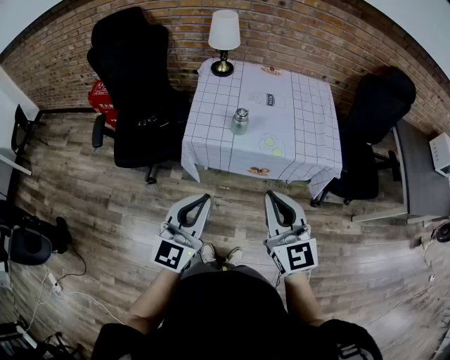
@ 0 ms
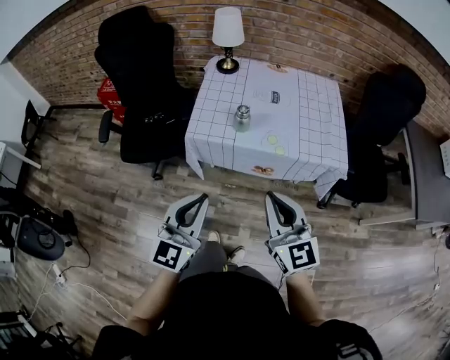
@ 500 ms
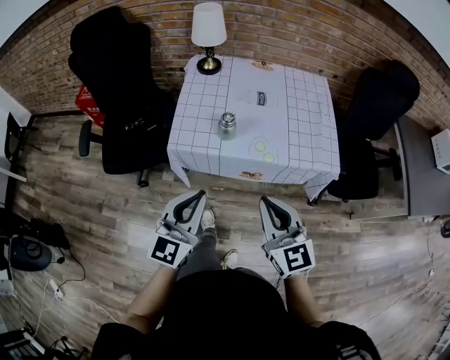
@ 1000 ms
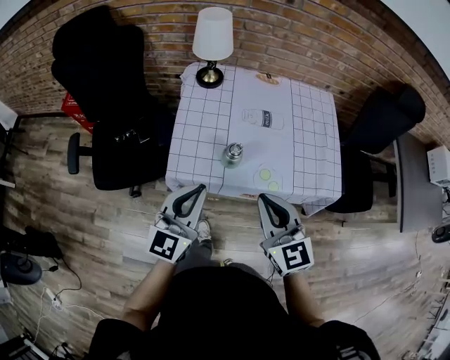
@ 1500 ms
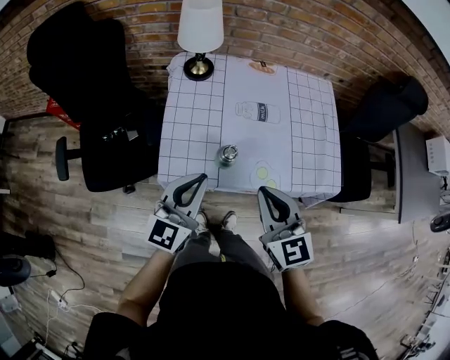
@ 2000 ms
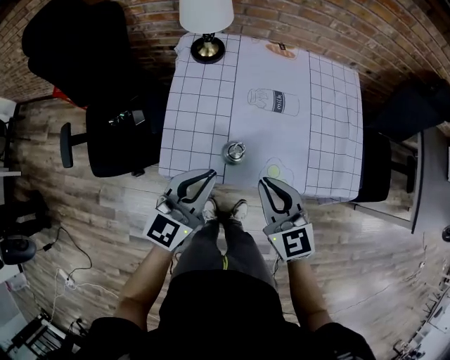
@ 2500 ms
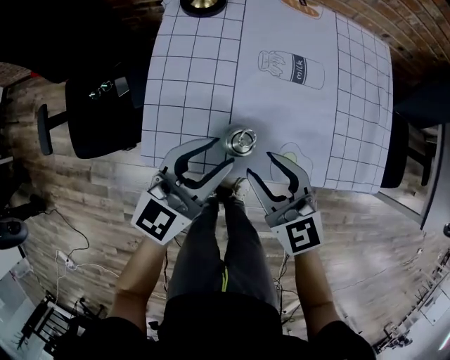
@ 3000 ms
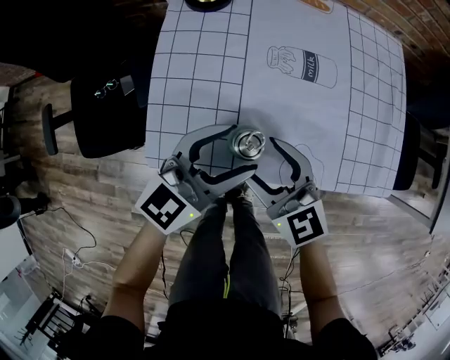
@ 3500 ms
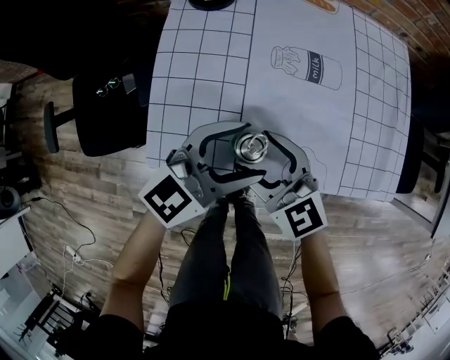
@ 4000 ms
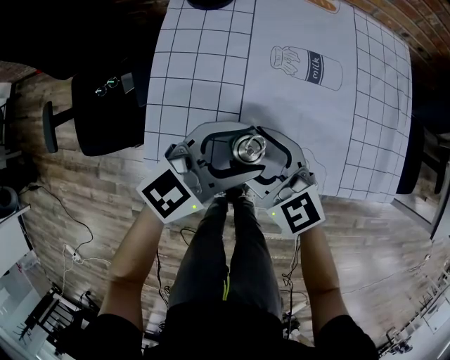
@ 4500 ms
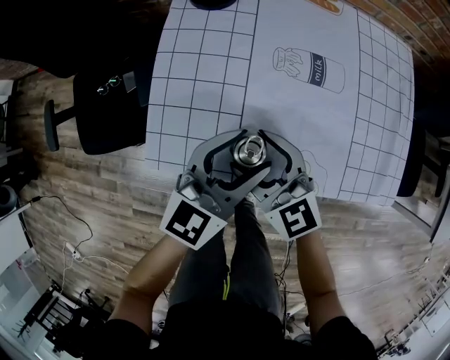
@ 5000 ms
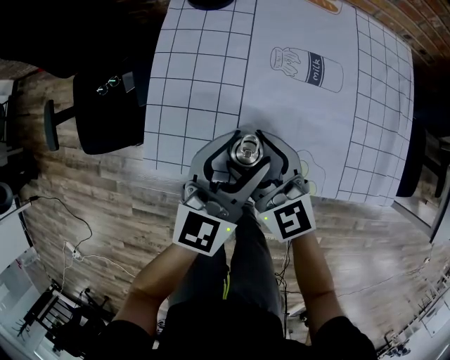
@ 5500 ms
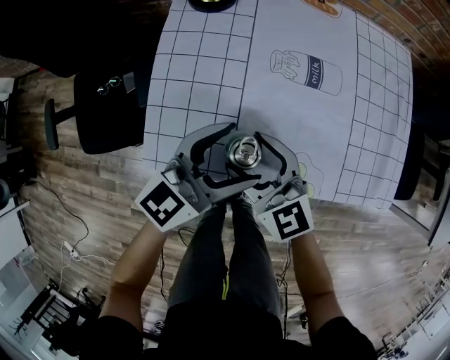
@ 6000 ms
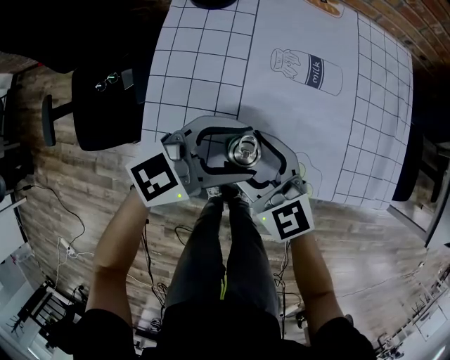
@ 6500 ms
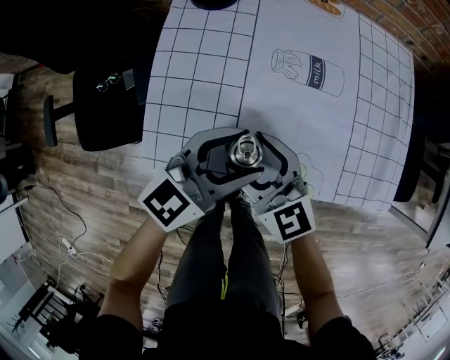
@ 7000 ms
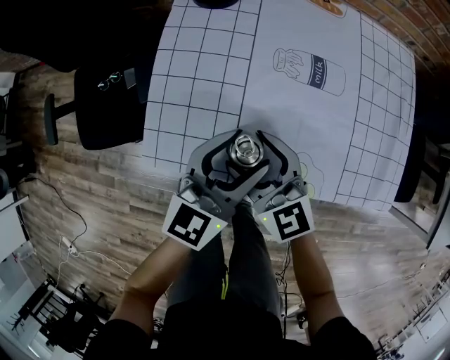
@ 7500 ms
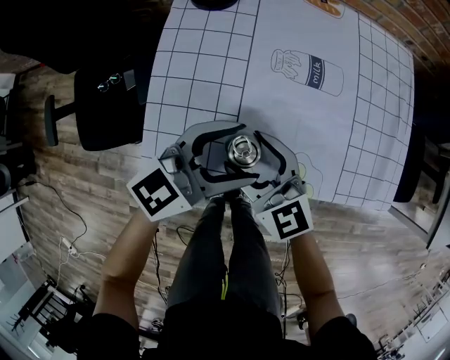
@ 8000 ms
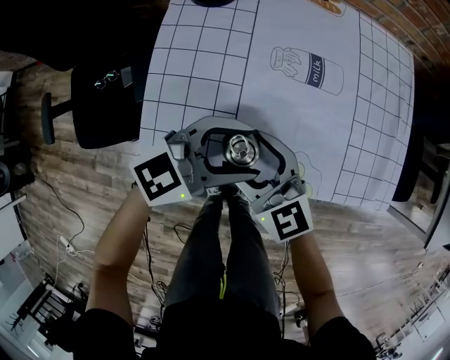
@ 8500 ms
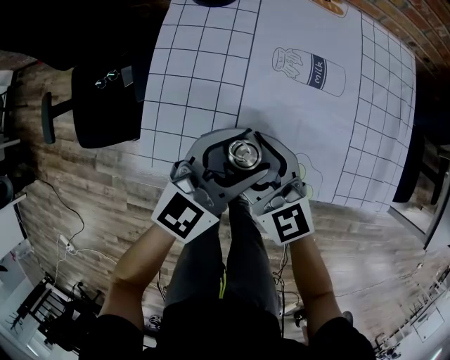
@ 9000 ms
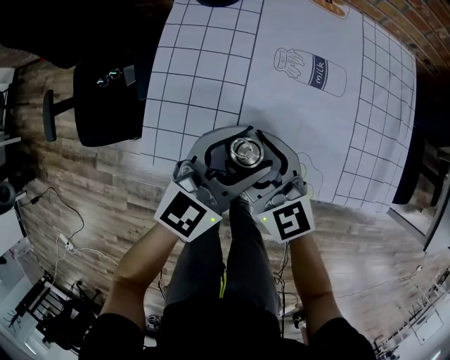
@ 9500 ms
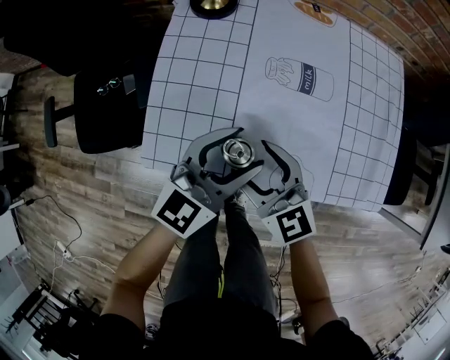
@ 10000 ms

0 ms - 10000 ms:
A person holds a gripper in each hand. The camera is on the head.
0 ms - 2000 ms: The grippers both shift forward by approximately 30 cm.
2000 ms - 4000 ms: The left gripper moves downward, to the right and forward, approximately 15 cm, rotates approximately 30 degrees, and opens. Meanwhile the right gripper goes about 20 cm downward and forward, rotates roughly 20 degrees, and opens up.

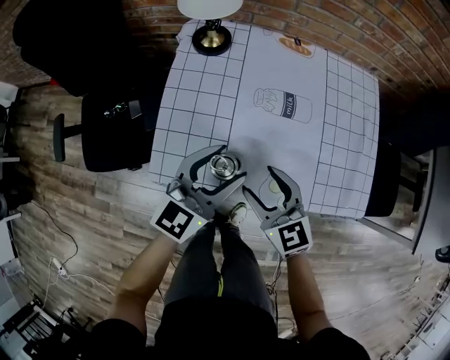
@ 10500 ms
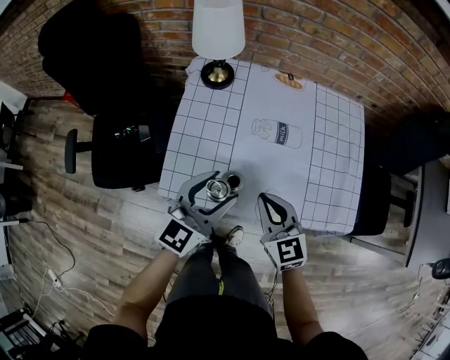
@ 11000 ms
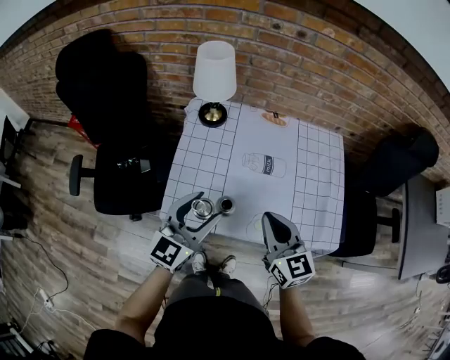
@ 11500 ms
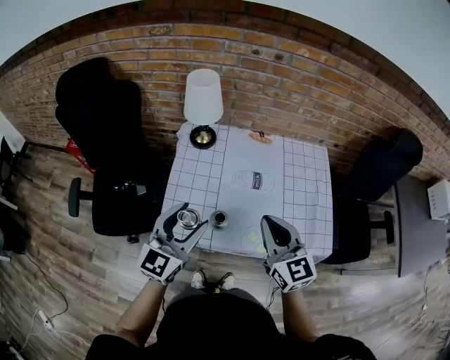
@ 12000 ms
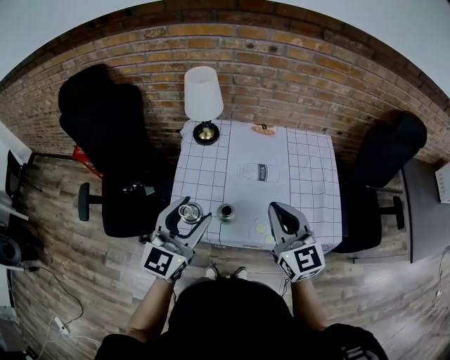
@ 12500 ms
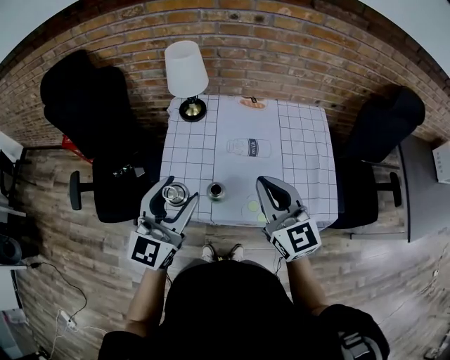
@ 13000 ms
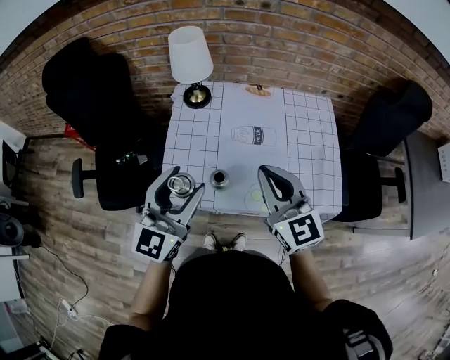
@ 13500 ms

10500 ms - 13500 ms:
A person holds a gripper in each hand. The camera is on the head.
10500 ms - 12000 ms: The right gripper goes about 20 cm upward, swivels approximately 20 degrees, and closes its fingers. Meanwhile the left gripper travels upward and to the left by roughly 15 cm.
12000 ms - 13500 ms: There are only small adjustments of the grippers.

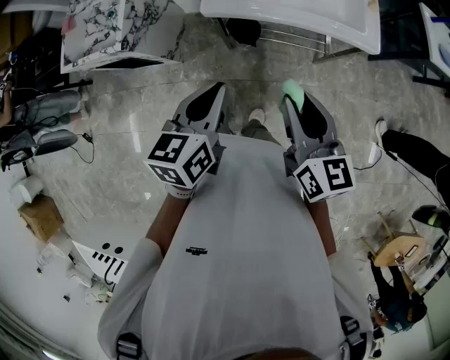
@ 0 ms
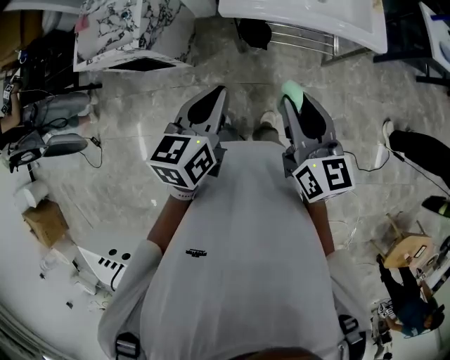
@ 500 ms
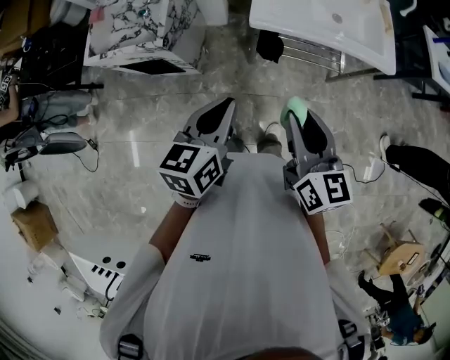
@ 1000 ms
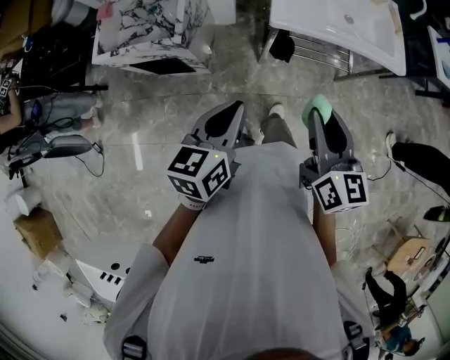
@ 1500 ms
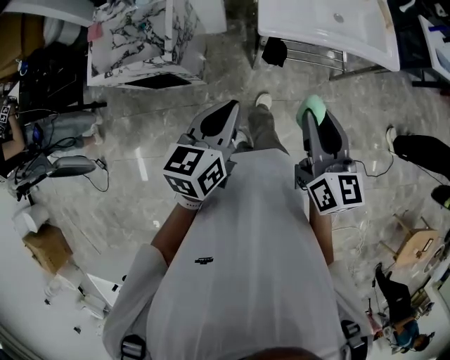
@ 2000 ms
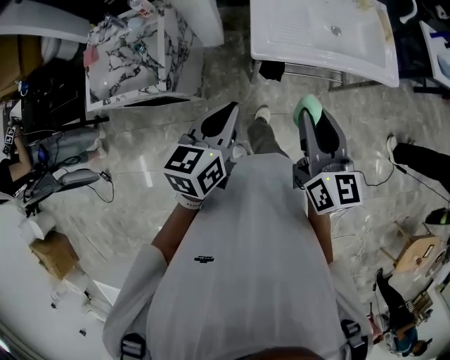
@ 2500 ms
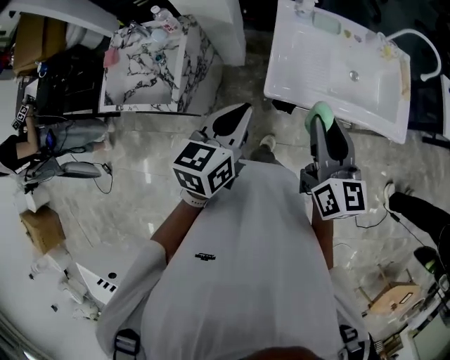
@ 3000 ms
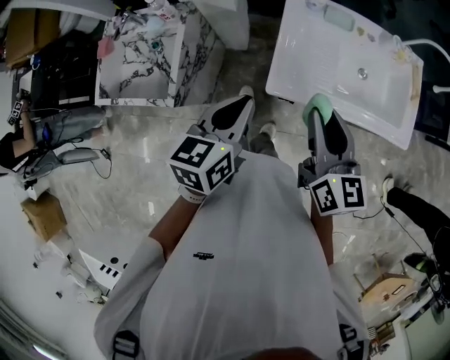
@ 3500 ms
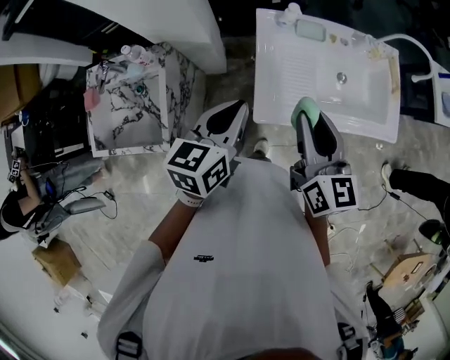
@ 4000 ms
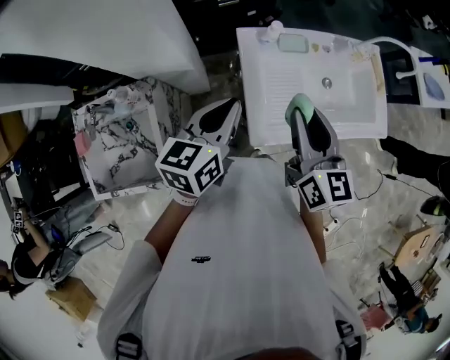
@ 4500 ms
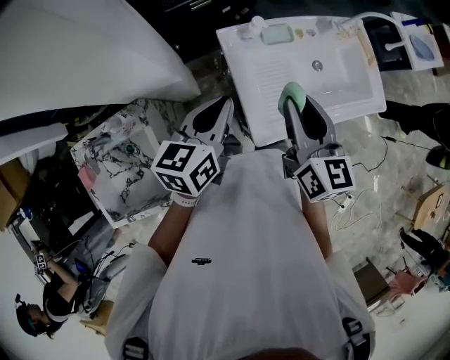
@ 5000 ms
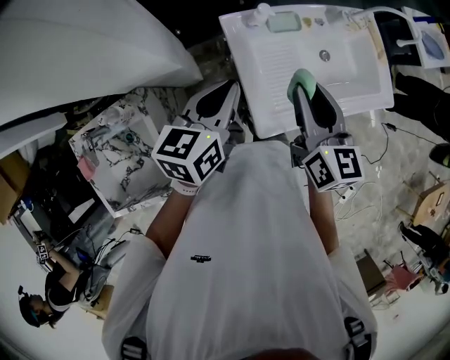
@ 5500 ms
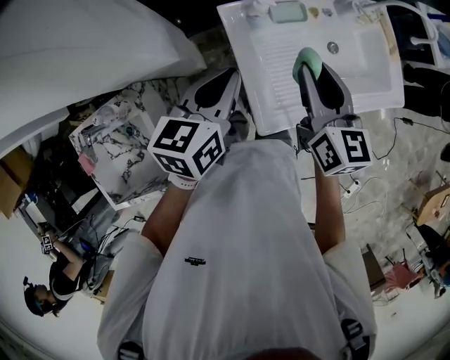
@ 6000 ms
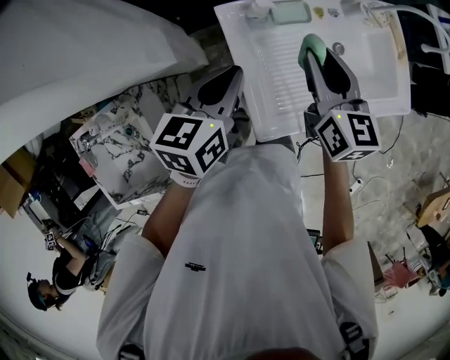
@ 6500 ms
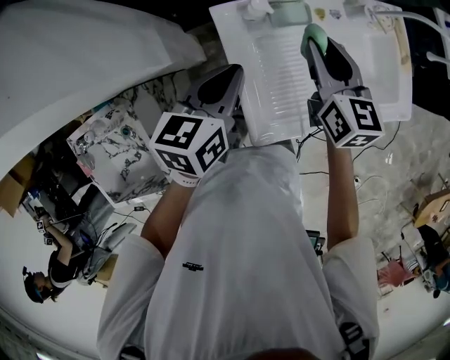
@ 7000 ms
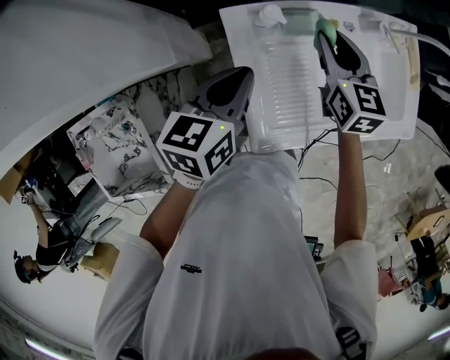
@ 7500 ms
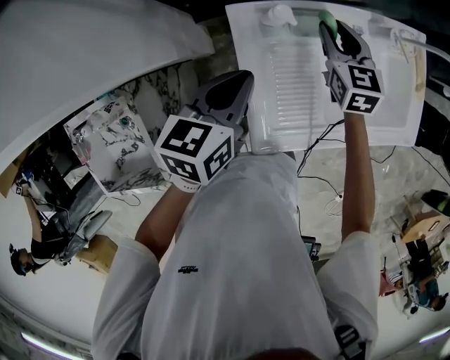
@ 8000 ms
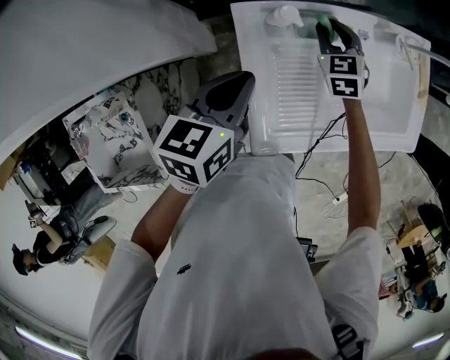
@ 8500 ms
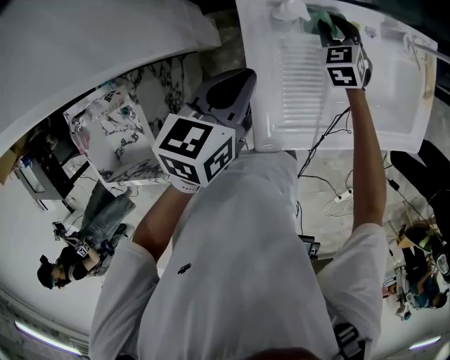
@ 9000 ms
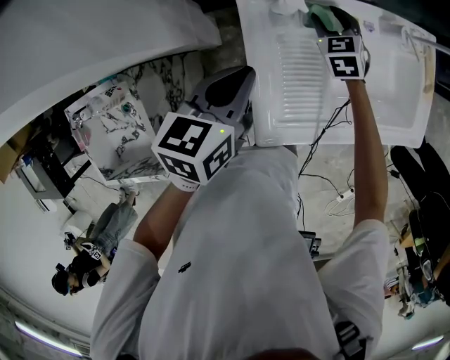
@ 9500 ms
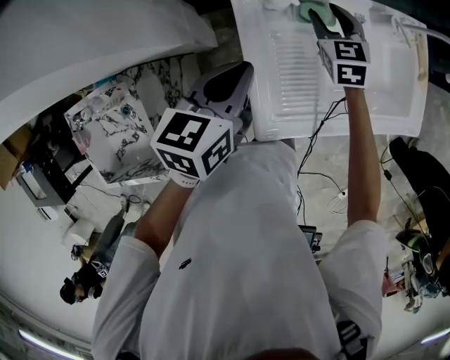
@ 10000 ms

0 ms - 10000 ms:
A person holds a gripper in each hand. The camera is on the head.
0 ms - 2000 ms: Both grippers travel together to the left, approximately 20 cm.
2000 ms - 4000 ms: The grippers both shift forward by about 35 cm.
4000 ms - 6000 ms: The two grippers go approximately 15 cm forward.
6000 ms - 8000 ms: The right gripper shifts about 25 cm forward and downward, and swivels approximately 30 degrees. The left gripper travels downward and forward by about 10 cm.
8000 ms - 10000 ms: The right gripper travels downward and back again, approximately 10 cm each way.

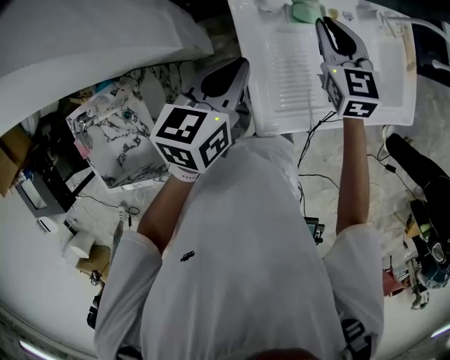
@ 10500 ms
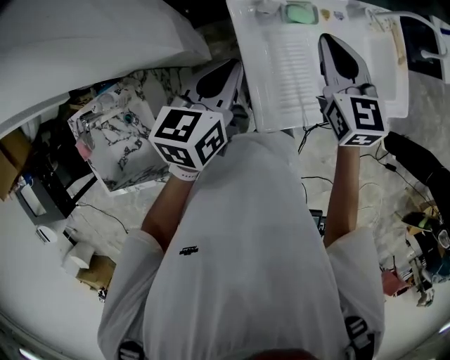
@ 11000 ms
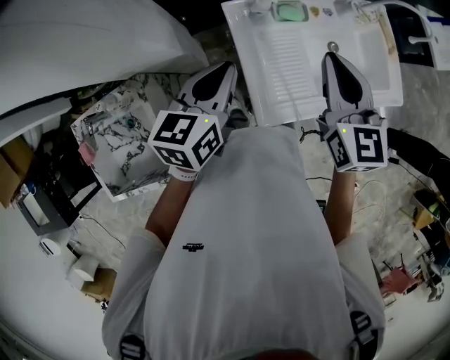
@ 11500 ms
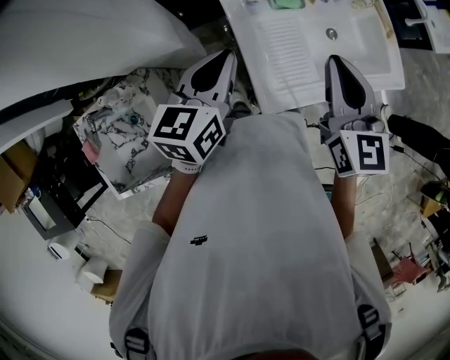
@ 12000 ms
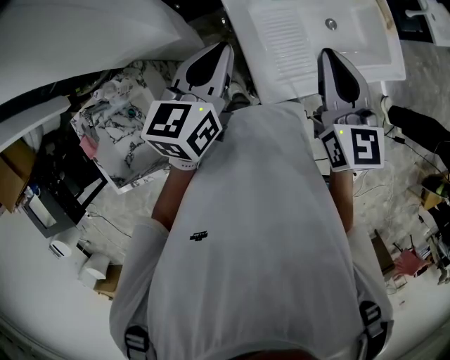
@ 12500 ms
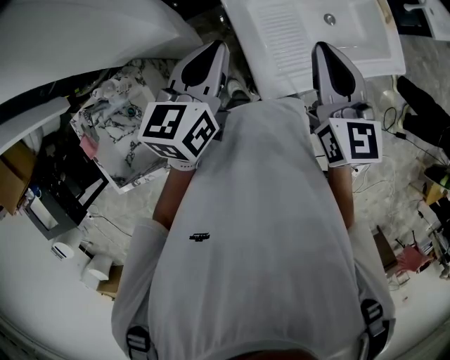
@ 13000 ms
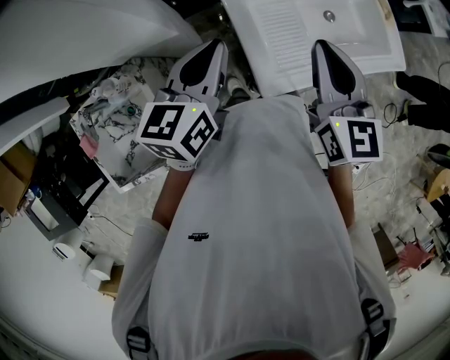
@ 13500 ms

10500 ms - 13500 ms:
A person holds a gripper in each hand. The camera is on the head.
10500 ms - 12000 ms: The right gripper travels backward and upward by approximately 20 cm. The left gripper heads backward and upward, covering some 10 cm.
12000 ms - 13500 ms: The grippers make only small movements.
